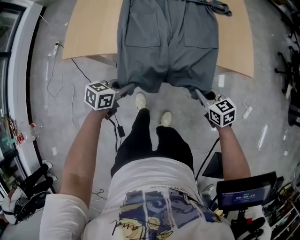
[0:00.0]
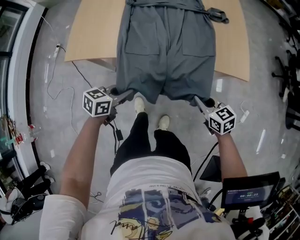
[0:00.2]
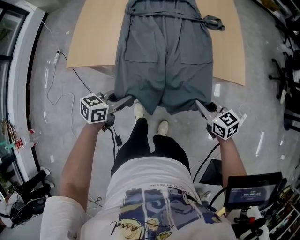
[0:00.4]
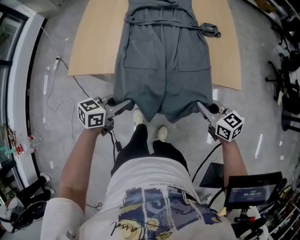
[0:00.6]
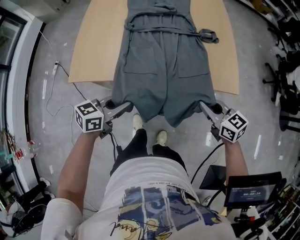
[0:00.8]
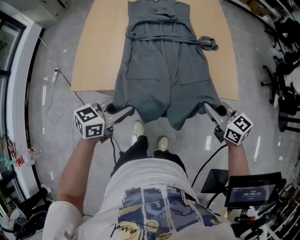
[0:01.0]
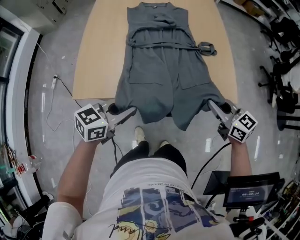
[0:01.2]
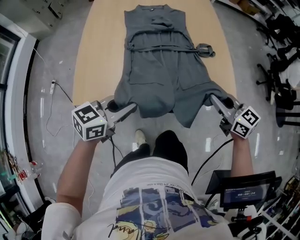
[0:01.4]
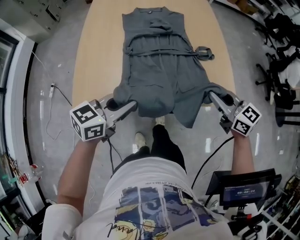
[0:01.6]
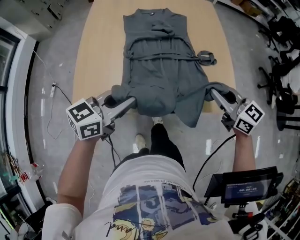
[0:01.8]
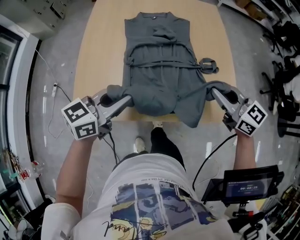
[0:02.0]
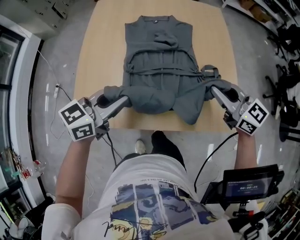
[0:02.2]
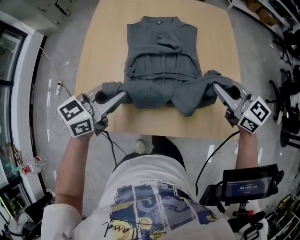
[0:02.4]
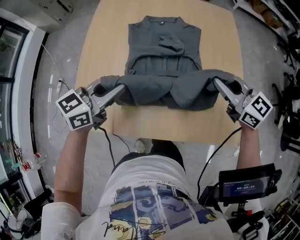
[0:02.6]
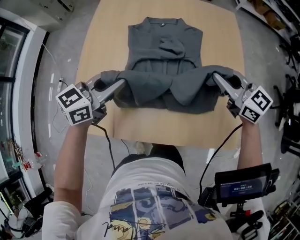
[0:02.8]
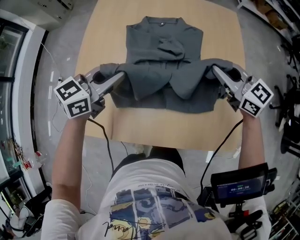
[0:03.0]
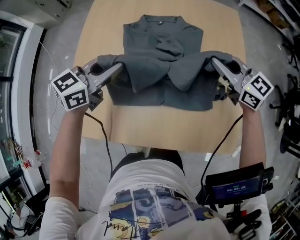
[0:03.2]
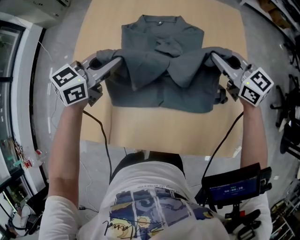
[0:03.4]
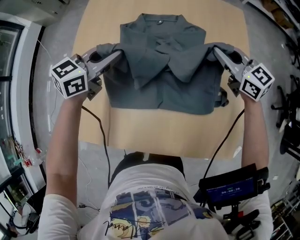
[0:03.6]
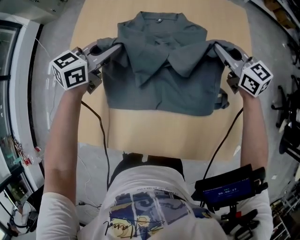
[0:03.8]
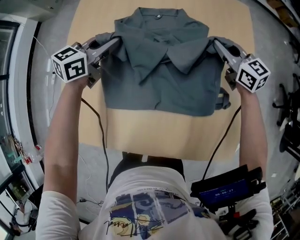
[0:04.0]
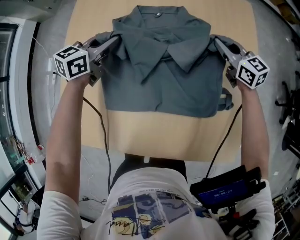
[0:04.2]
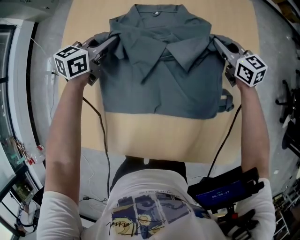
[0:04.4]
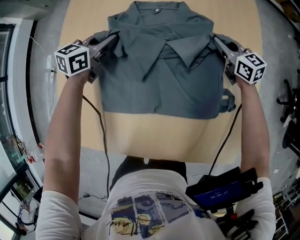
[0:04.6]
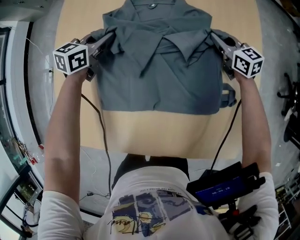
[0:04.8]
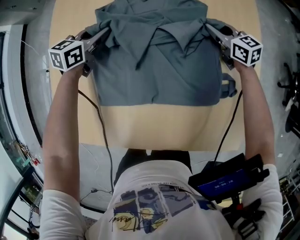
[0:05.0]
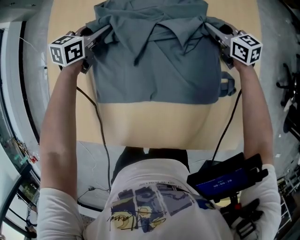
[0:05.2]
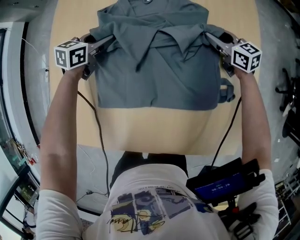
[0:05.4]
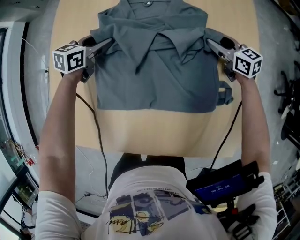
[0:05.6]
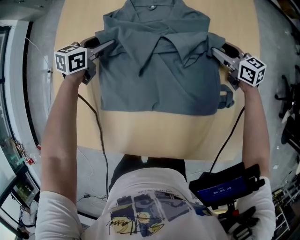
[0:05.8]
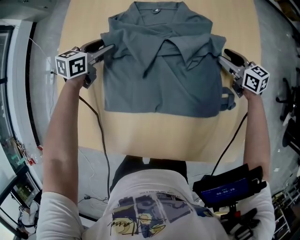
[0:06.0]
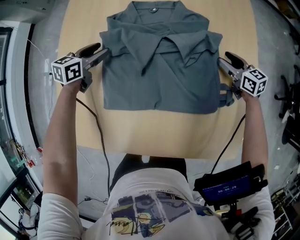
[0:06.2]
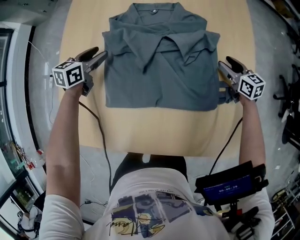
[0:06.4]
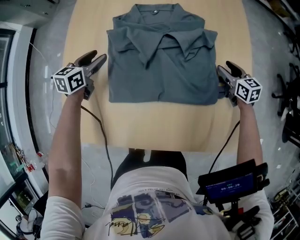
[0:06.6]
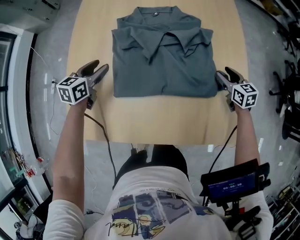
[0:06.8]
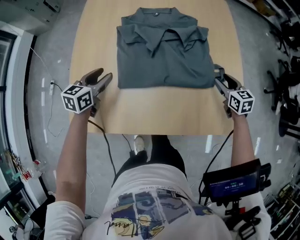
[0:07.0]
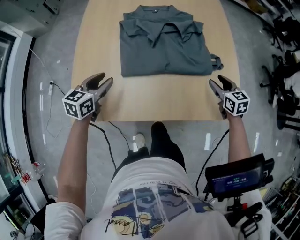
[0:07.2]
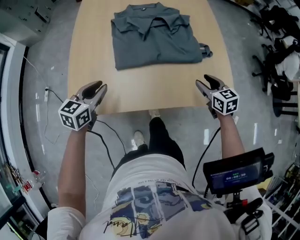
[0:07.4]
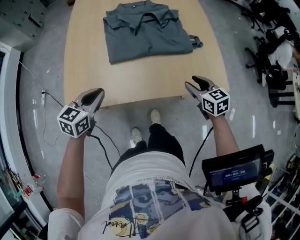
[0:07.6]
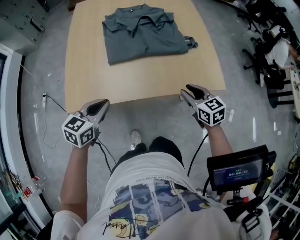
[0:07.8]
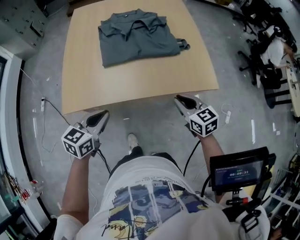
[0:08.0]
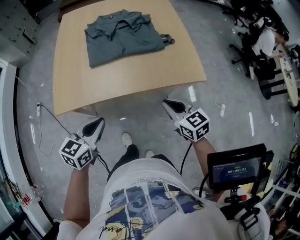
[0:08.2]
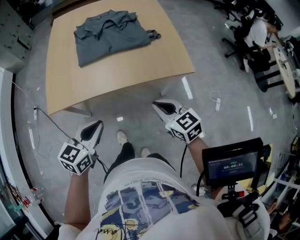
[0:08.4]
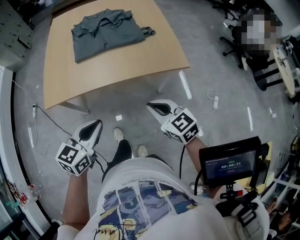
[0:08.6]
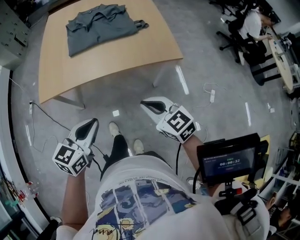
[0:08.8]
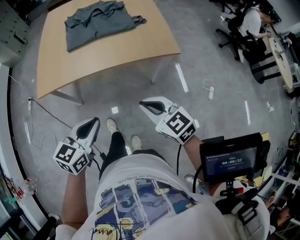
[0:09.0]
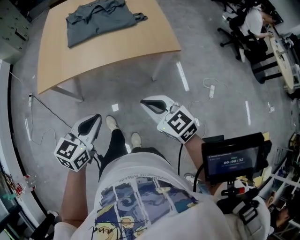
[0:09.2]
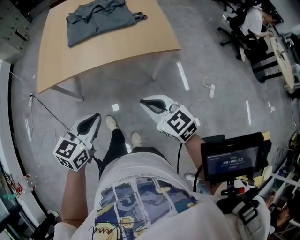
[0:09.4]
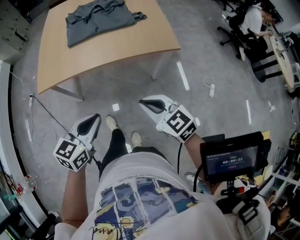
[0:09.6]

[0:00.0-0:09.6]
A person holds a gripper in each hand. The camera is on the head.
0.0 to 1.6 s: The two grippers go some 30 cm upward and forward. The left gripper turns by roughly 30 degrees. Meanwhile the right gripper turns by roughly 20 degrees.
1.6 to 3.2 s: The grippers both shift forward by about 30 cm.
3.2 to 4.8 s: The right gripper shifts approximately 30 cm downward and forward, and changes its angle by roughly 20 degrees. Meanwhile the left gripper moves forward and downward, some 30 cm.
4.8 to 6.4 s: The right gripper heads backward and to the right, covering some 10 cm, and opens its fingers. Meanwhile the left gripper moves to the left and backward, some 10 cm, and opens its fingers.
6.4 to 8.0 s: The two grippers travel together, backward, some 50 cm. The right gripper closes up; the left gripper closes.
8.0 to 9.6 s: The right gripper goes some 25 cm backward. Meanwhile the left gripper heads backward and to the right, covering about 25 cm.

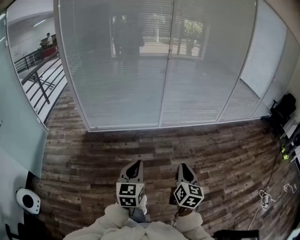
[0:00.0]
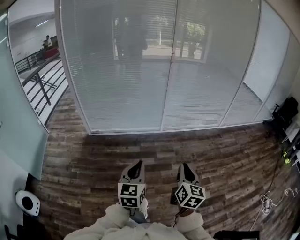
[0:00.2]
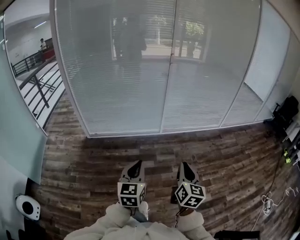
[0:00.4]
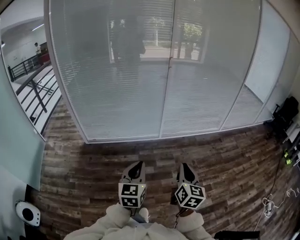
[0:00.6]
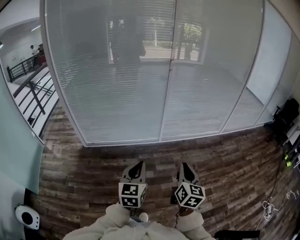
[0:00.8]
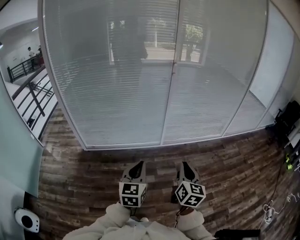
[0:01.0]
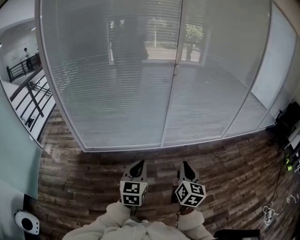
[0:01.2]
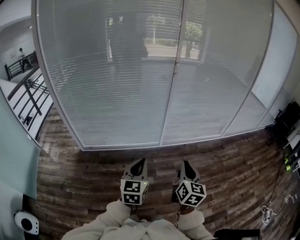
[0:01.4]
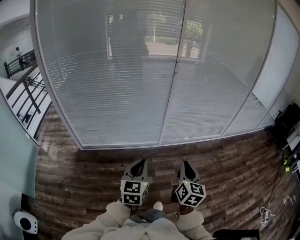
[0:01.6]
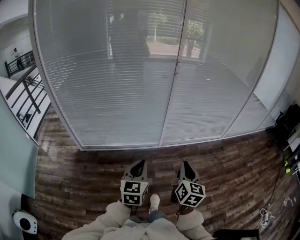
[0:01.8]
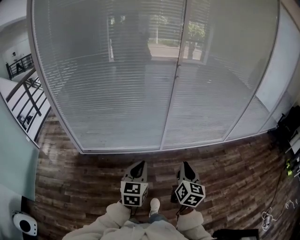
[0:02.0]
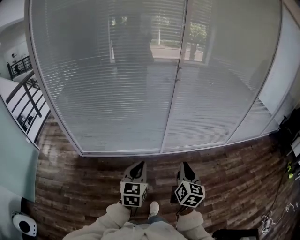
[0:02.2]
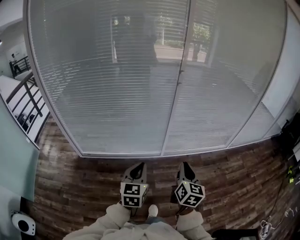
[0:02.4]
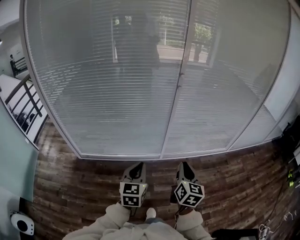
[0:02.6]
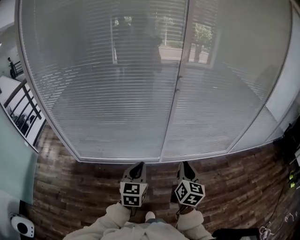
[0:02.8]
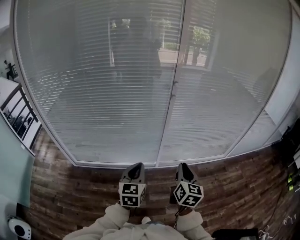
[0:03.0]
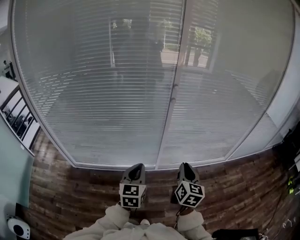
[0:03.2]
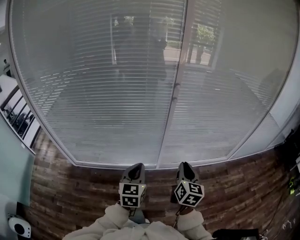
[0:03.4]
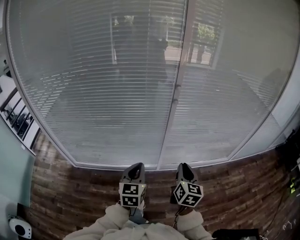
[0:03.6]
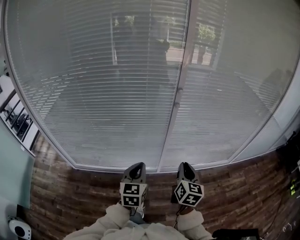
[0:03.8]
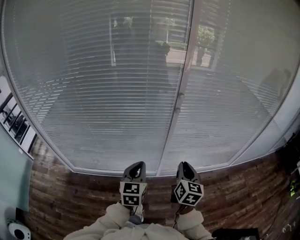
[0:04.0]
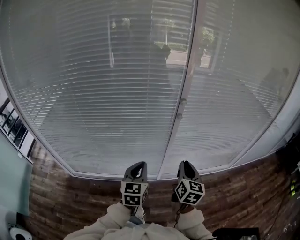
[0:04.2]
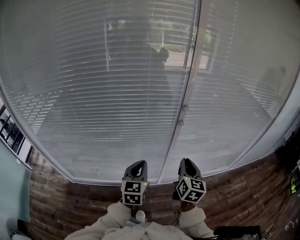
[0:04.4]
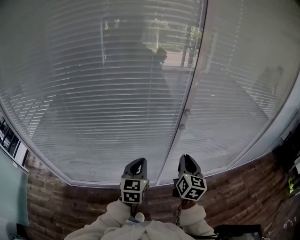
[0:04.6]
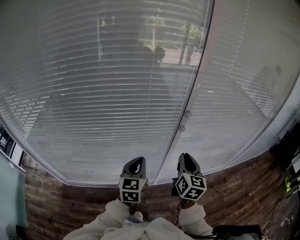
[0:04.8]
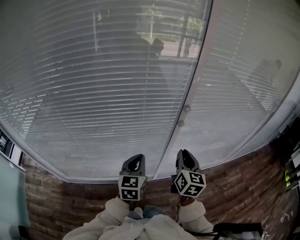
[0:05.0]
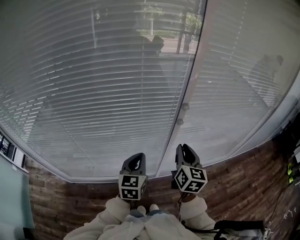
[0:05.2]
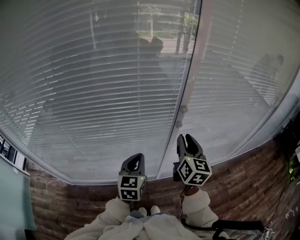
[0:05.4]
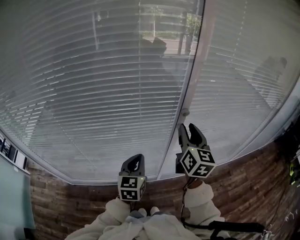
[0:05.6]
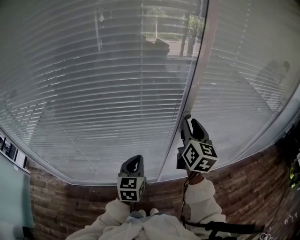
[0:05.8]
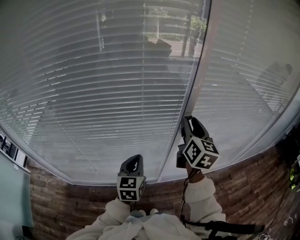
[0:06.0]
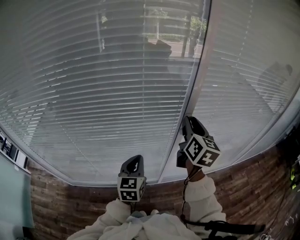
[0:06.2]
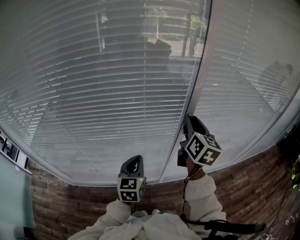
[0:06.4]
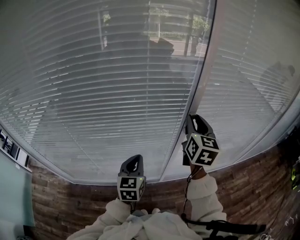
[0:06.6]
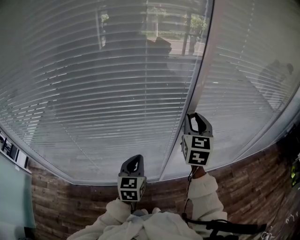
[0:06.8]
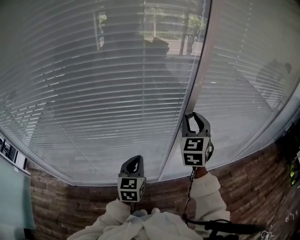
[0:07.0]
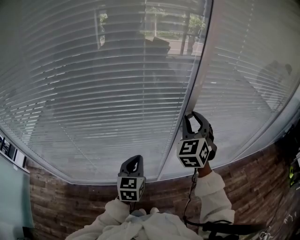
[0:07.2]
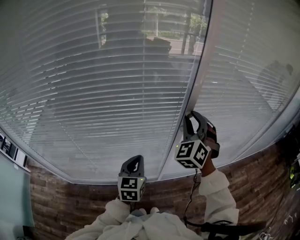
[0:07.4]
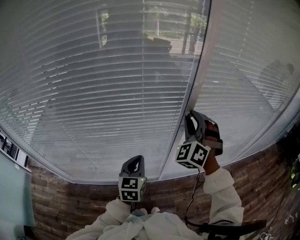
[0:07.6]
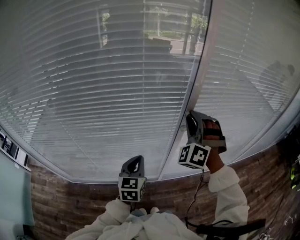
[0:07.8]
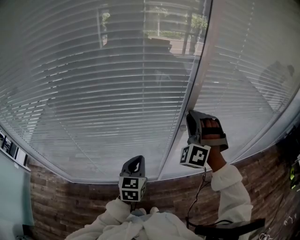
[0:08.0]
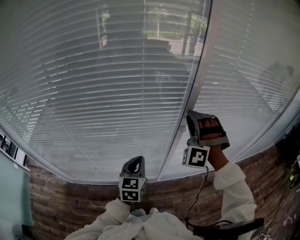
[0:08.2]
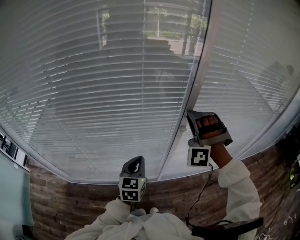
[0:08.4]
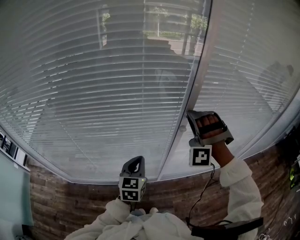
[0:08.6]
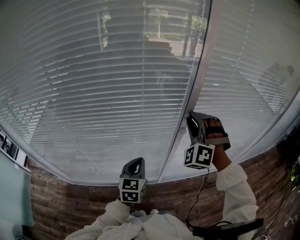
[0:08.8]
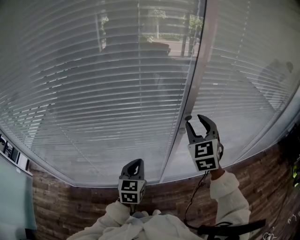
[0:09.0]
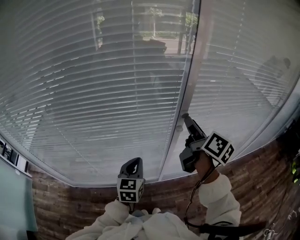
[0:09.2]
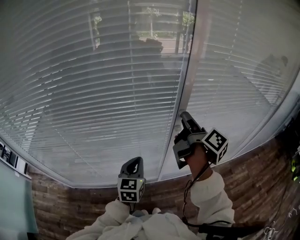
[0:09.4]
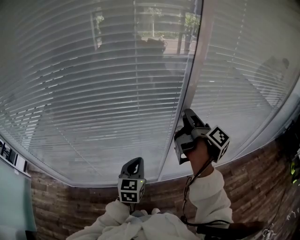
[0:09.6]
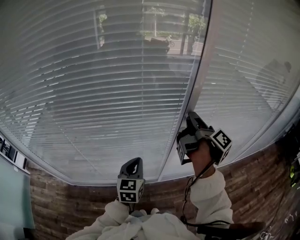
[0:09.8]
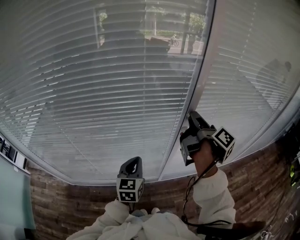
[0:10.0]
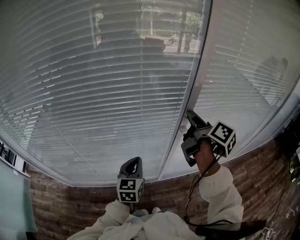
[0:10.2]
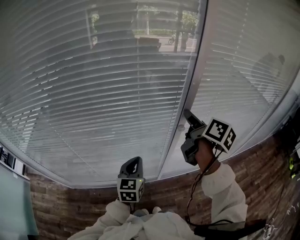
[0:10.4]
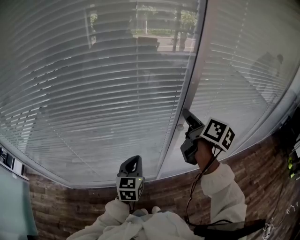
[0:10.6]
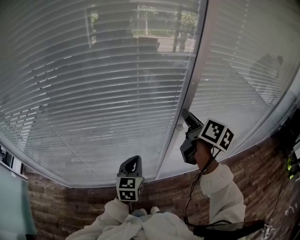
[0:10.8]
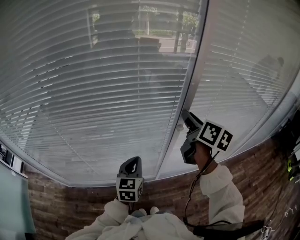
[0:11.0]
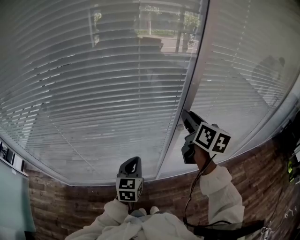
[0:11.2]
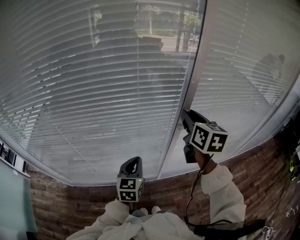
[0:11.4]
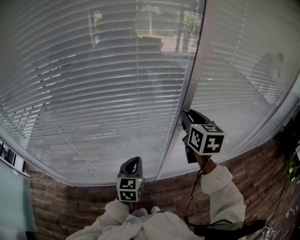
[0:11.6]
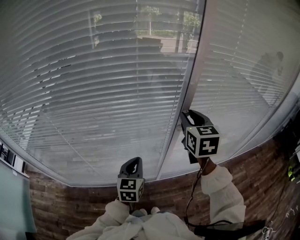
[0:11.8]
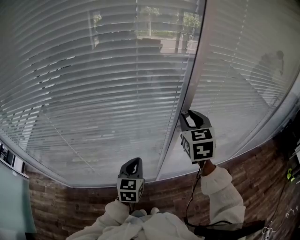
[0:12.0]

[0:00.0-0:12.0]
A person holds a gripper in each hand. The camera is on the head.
0.0 to 1.6 s: Both grippers are carried forward, approximately 40 cm.
1.6 to 3.0 s: Both grippers travel together forward, approximately 30 cm.
3.0 to 4.4 s: Both grippers move forward, roughly 25 cm.
4.4 to 6.0 s: The left gripper heads forward, covering about 15 cm; the right gripper goes approximately 25 cm forward and upward, and opens.
6.0 to 7.6 s: The right gripper rolls counterclockwise, seen from behind, by approximately 80 degrees.
7.6 to 9.0 s: The right gripper swivels about 40 degrees.
9.0 to 10.4 s: The right gripper rotates around the line of its fingers by approximately 80 degrees, clockwise from behind.
10.4 to 12.0 s: The right gripper rolls counterclockwise, seen from behind, by about 60 degrees.

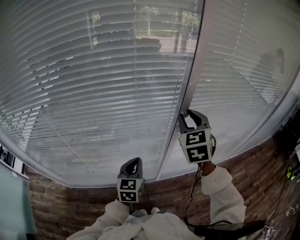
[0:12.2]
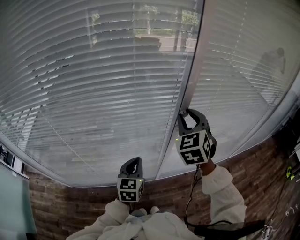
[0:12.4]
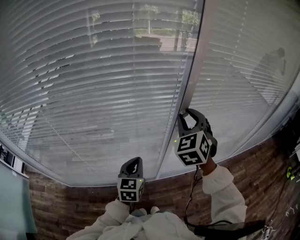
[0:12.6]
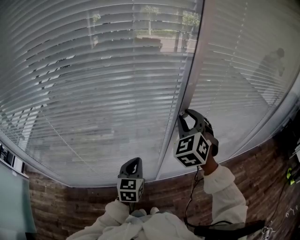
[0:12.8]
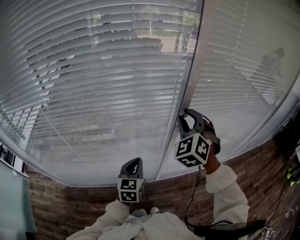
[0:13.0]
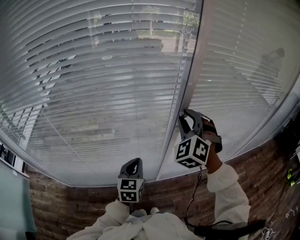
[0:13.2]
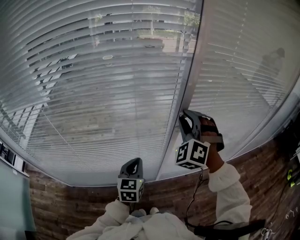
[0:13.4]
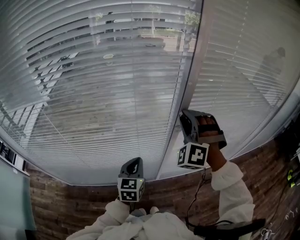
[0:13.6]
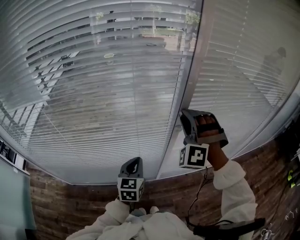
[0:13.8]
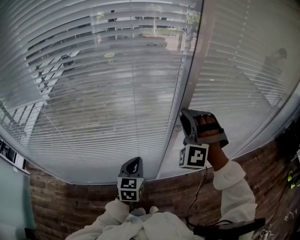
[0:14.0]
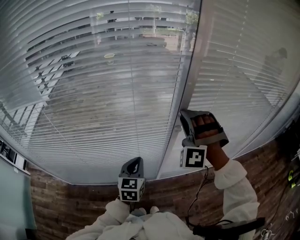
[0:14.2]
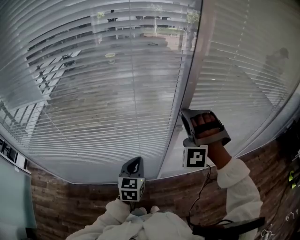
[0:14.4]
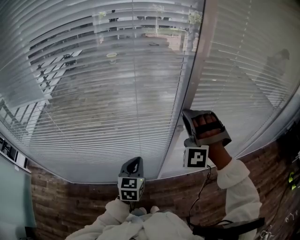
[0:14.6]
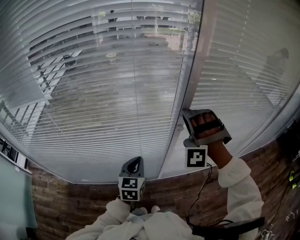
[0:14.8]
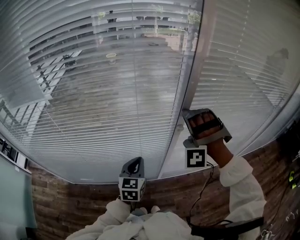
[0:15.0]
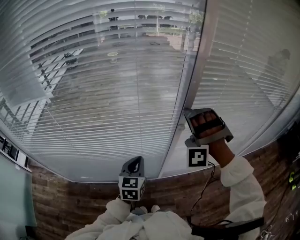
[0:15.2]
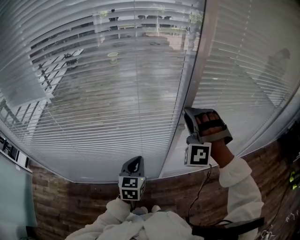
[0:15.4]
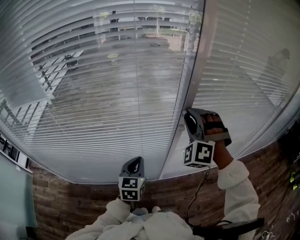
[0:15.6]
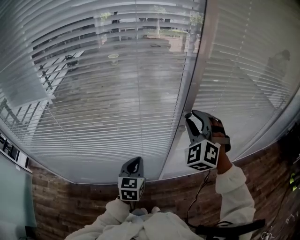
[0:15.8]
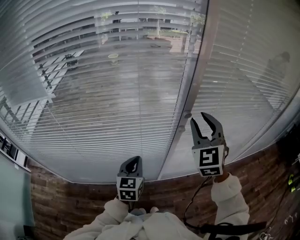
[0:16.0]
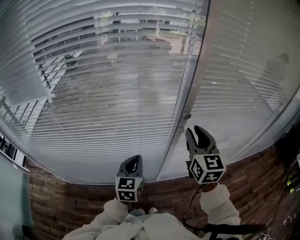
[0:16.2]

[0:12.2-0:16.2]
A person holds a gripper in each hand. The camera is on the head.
12.2 to 13.6 s: The right gripper twists roughly 60 degrees counterclockwise, seen from behind.
13.6 to 14.8 s: The right gripper rotates some 20 degrees.
14.8 to 16.2 s: The right gripper shifts by roughly 5 cm, and twists approximately 100 degrees clockwise, seen from behind.
